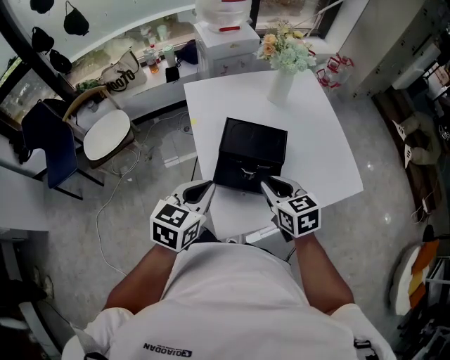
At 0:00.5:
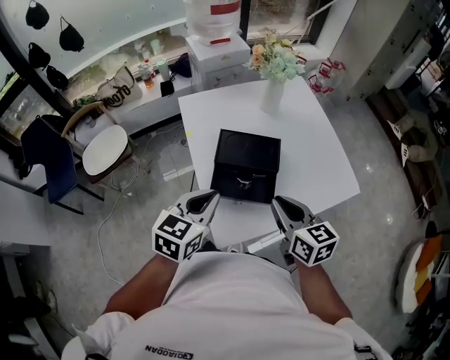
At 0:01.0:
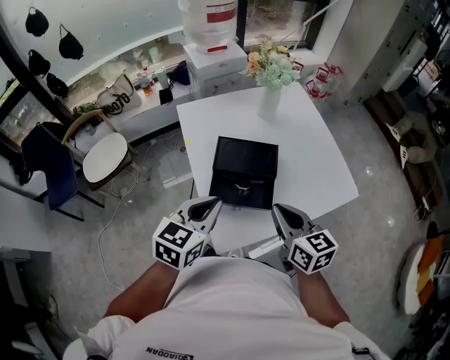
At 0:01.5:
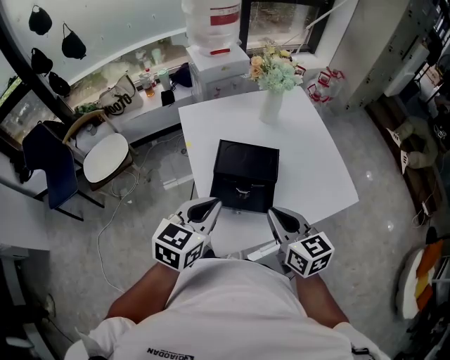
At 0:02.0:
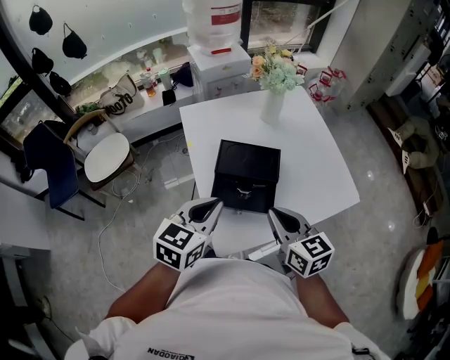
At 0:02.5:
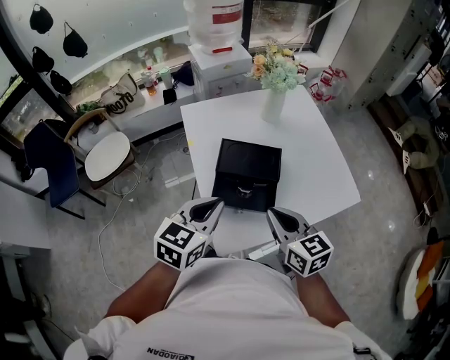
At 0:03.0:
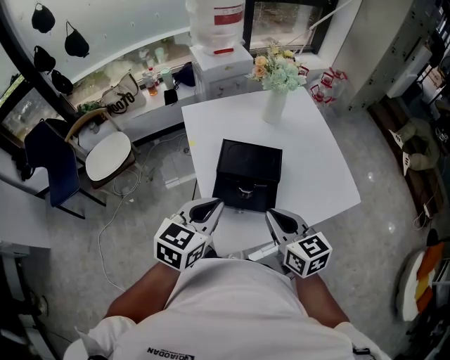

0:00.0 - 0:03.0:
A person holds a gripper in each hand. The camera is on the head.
0:00.0 - 0:01.5: The right gripper travels upward by some 5 cm. The left gripper changes place by roughly 5 cm.
0:01.5 - 0:03.0: There are only small adjustments of the grippers.

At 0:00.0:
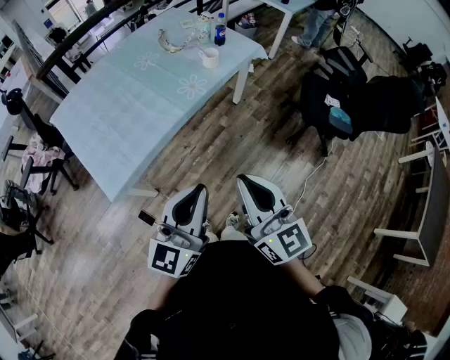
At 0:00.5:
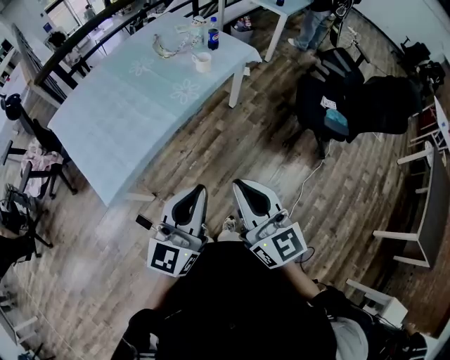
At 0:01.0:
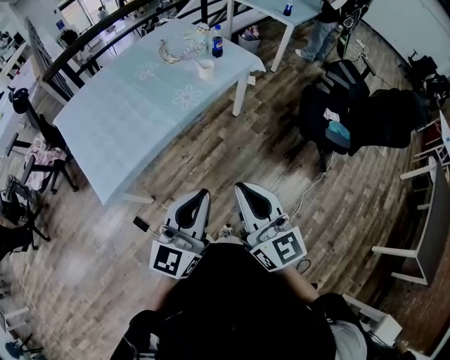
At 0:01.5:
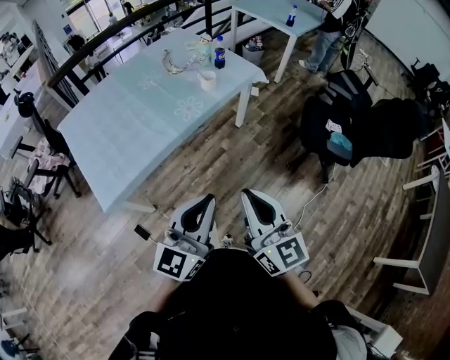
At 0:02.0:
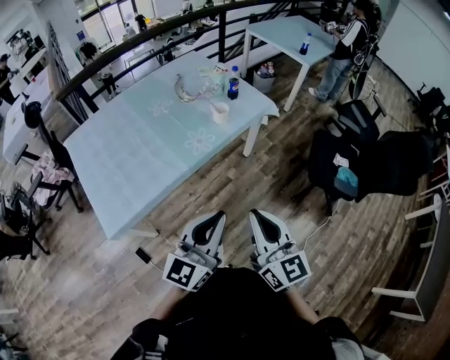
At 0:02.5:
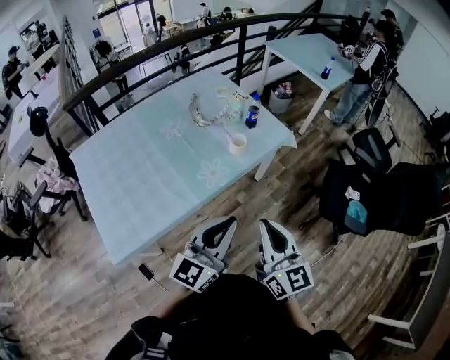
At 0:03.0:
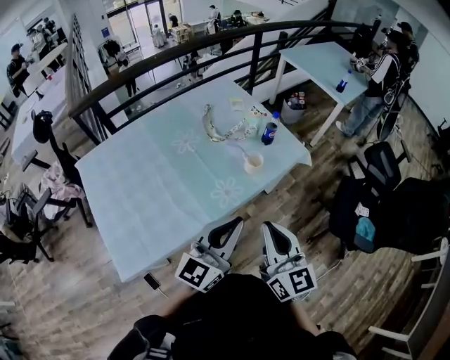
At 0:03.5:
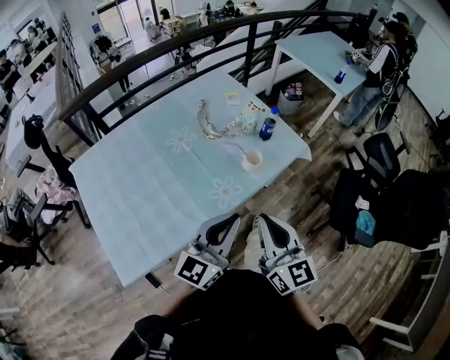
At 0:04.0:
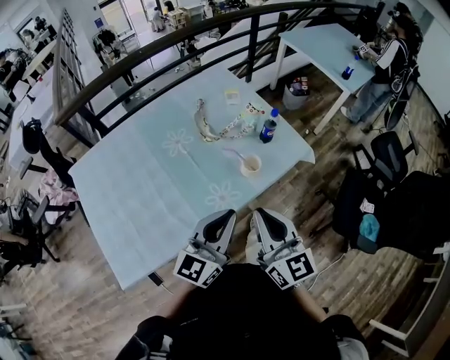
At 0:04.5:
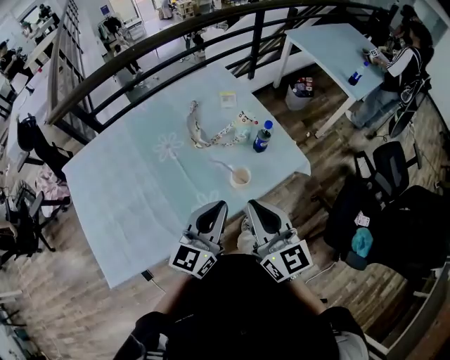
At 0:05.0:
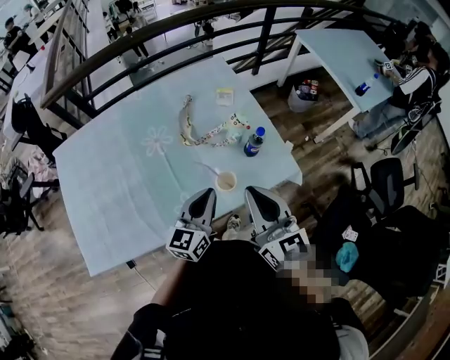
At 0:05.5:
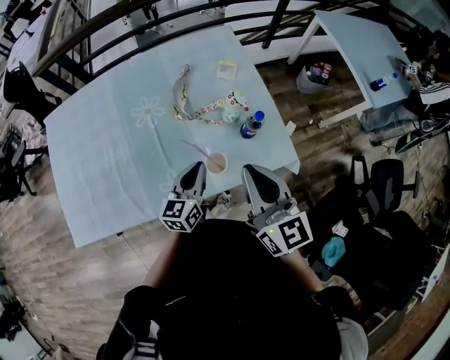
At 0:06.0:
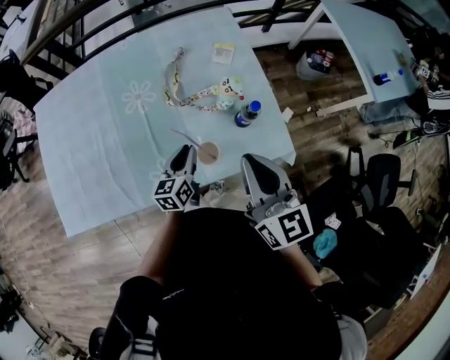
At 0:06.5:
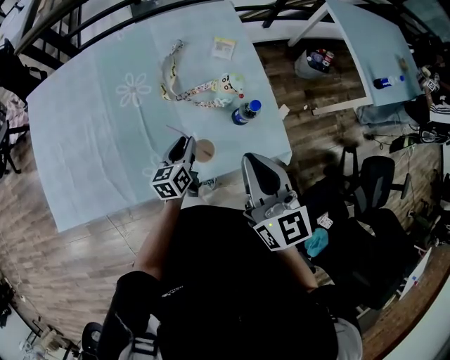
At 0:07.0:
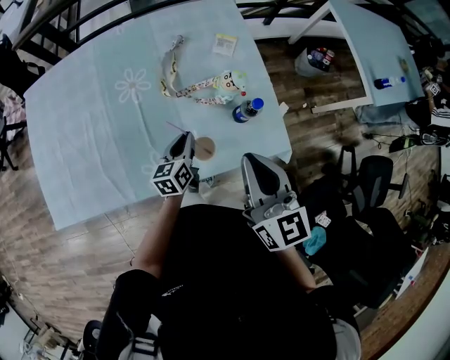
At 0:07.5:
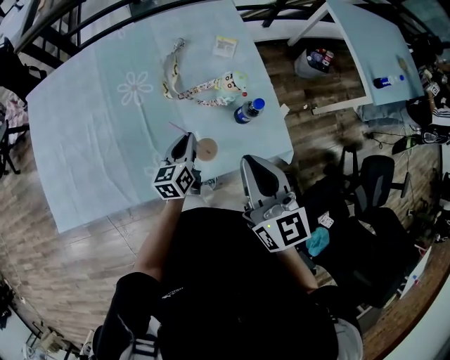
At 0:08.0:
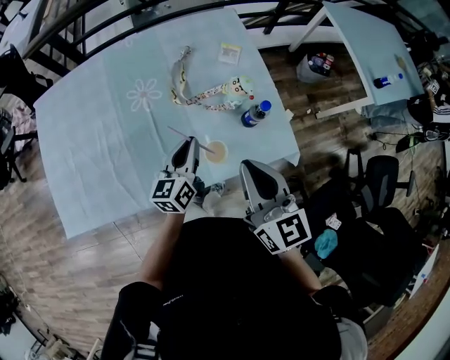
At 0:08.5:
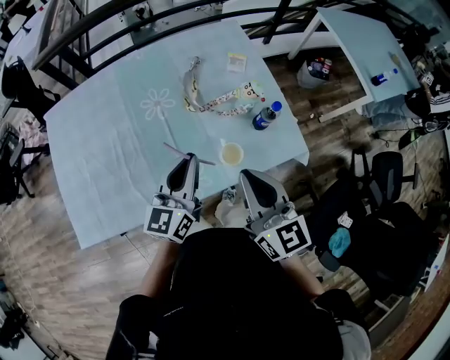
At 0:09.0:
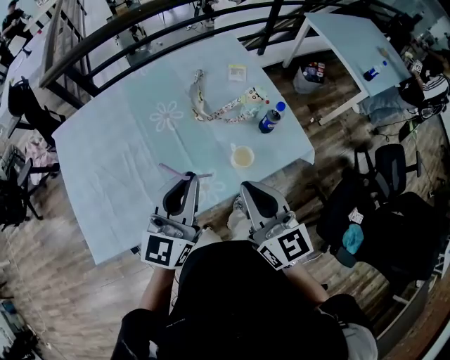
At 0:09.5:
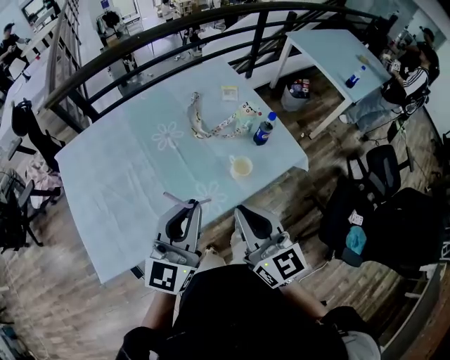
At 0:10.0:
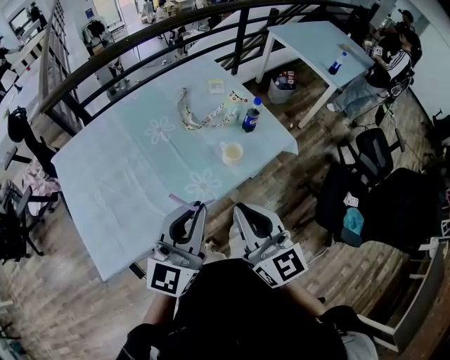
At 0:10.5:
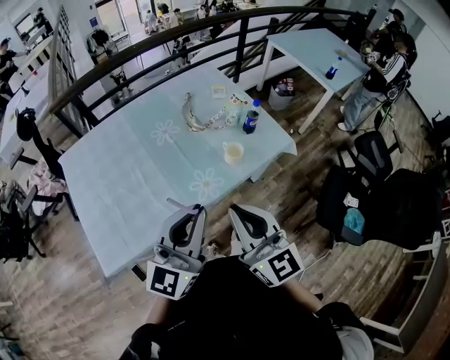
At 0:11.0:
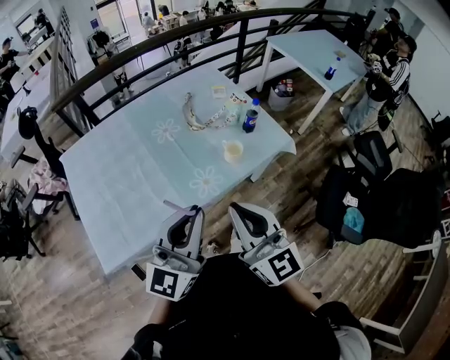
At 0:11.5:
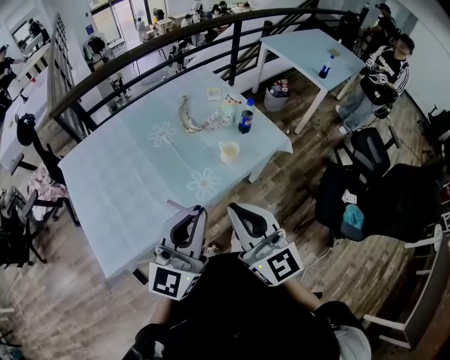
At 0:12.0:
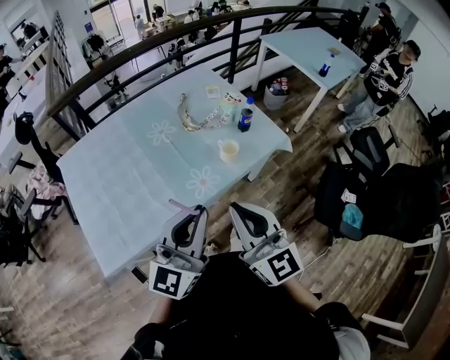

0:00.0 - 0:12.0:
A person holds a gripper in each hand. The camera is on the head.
0:00.0 - 0:02.0: The grippers both shift forward and to the right by some 15 cm.
0:02.0 - 0:04.0: Both grippers travel together forward, approximately 35 cm.
0:04.0 - 0:06.0: The right gripper moves about 25 cm. Meanwhile the left gripper shifts by roughly 35 cm, and rotates approximately 50 degrees.
0:06.0 - 0:08.0: The left gripper shifts about 5 cm upward.
0:08.0 - 0:10.0: The left gripper goes about 35 cm backward and upward, and changes its angle by roughly 40 degrees; the right gripper is displaced backward and to the left by about 25 cm.
0:10.0 - 0:12.0: Both grippers move backward, about 5 cm.

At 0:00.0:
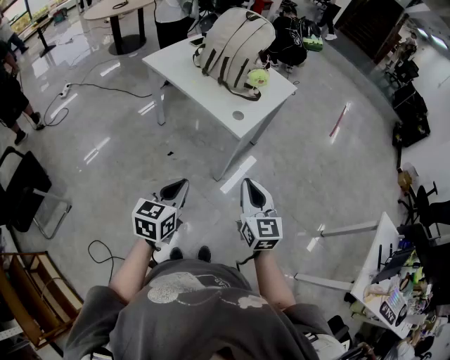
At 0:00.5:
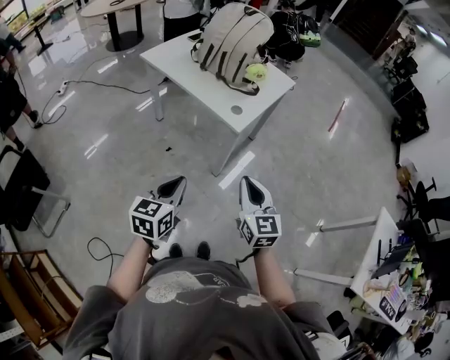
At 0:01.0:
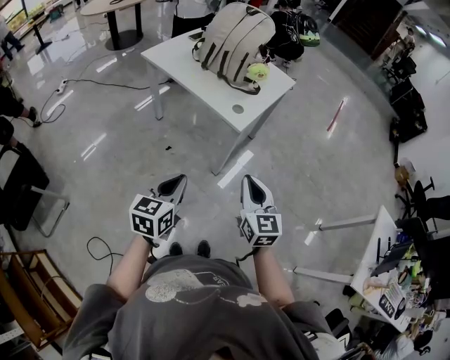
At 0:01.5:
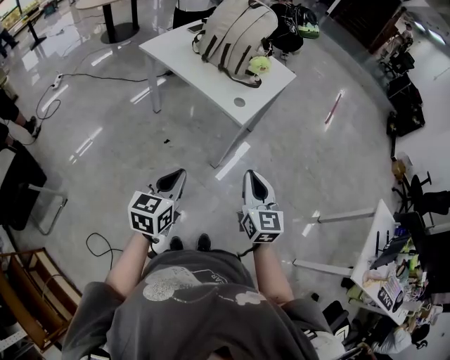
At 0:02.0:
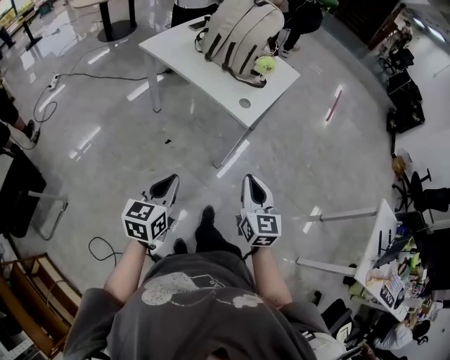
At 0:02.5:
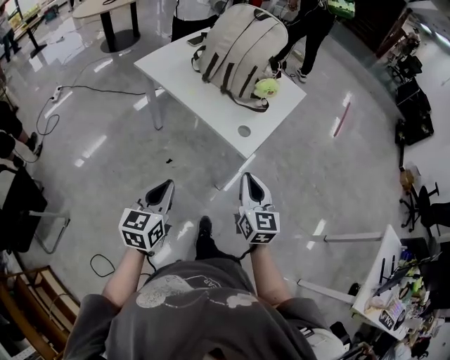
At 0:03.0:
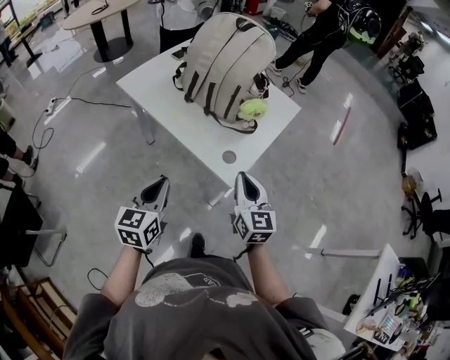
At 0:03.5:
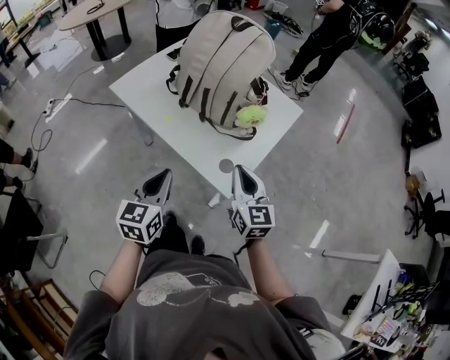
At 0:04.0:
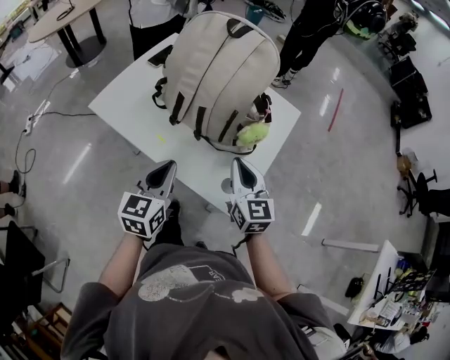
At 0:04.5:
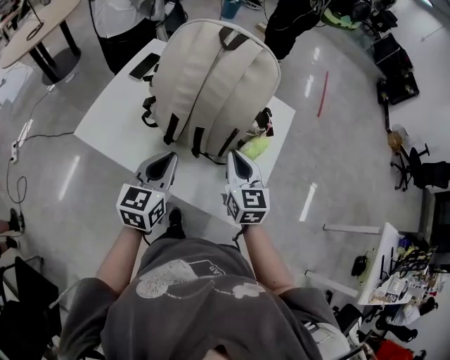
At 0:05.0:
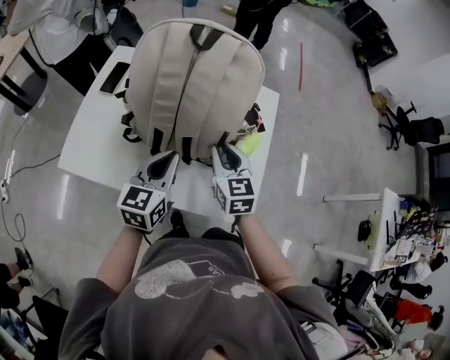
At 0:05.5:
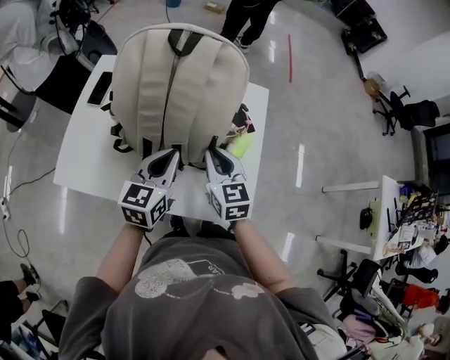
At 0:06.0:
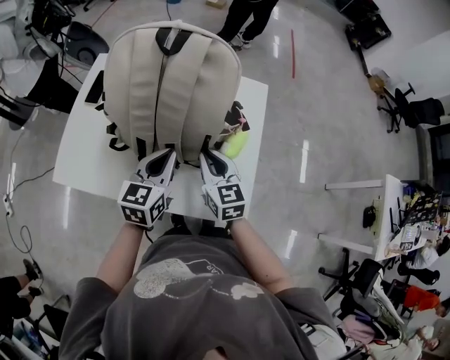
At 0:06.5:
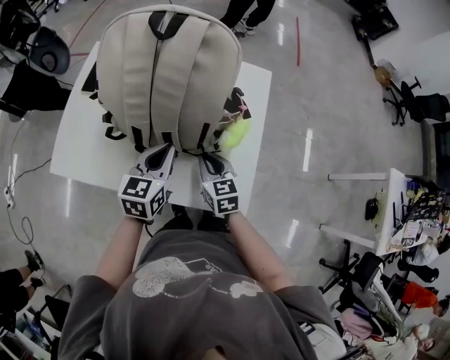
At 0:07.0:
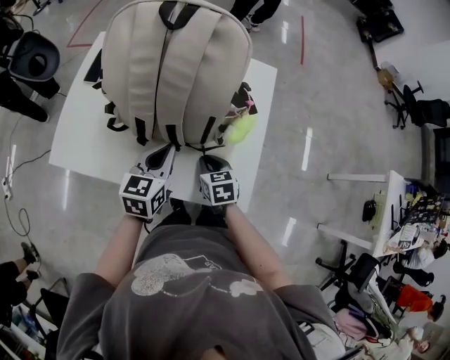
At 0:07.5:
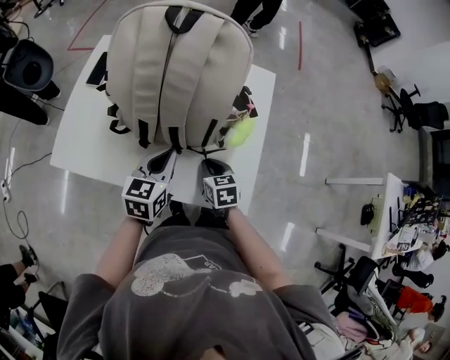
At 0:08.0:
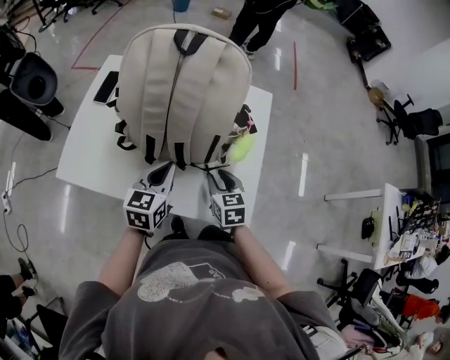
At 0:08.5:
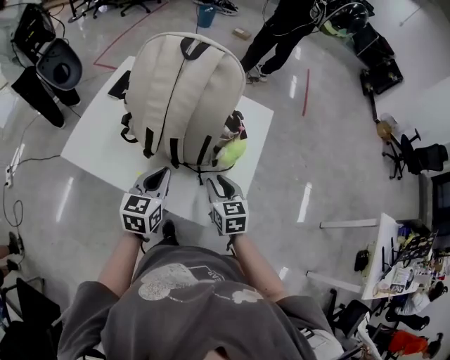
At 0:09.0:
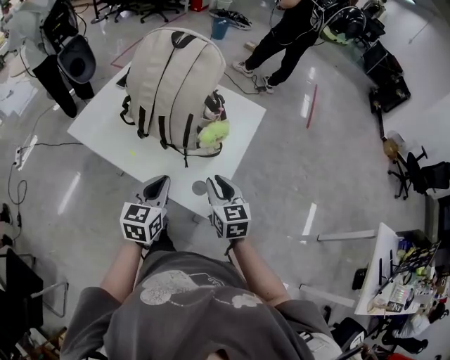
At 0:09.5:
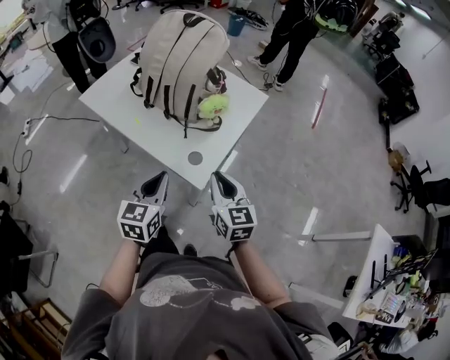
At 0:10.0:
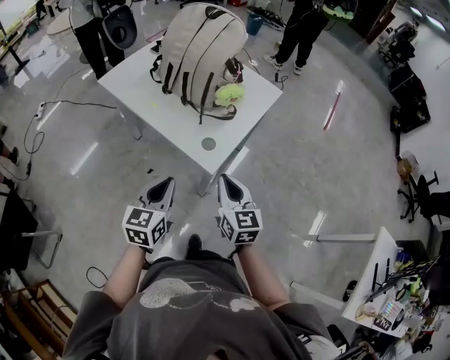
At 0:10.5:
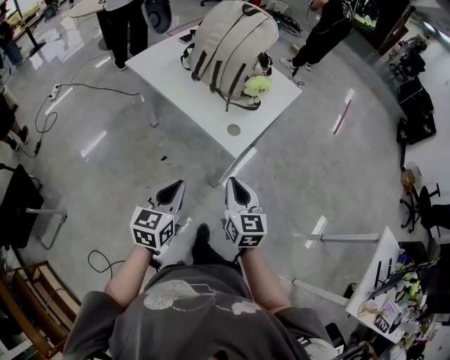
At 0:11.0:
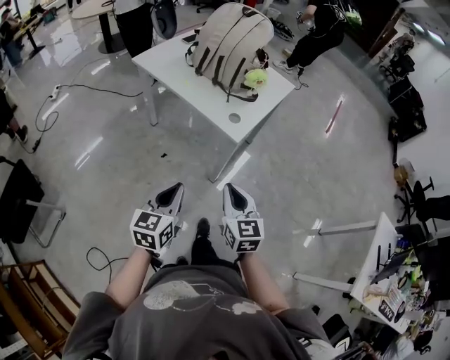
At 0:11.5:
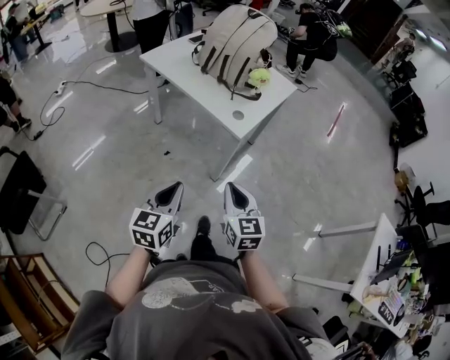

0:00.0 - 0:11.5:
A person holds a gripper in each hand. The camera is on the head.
0:00.0 - 0:02.0: The left gripper shifts about 10 cm to the left; the right gripper changes place by about 5 cm.
0:02.0 - 0:04.0: Both grippers are carried forward, roughly 50 cm.
0:04.0 - 0:06.0: The left gripper is displaced forward by approximately 20 cm, and rotates some 20 degrees. Meanwhile the right gripper is displaced forward, downward and to the left by approximately 15 cm.
0:06.0 - 0:07.5: The left gripper shifts some 5 cm downward. The right gripper shifts roughly 15 cm downward, and rotates some 30 degrees.
0:07.5 - 0:09.5: The right gripper shifts some 30 cm backward, upward and to the right, changes its angle by some 40 degrees, and opens, then closes once more; the left gripper heads backward and to the right, covering about 30 cm, and swivels about 30 degrees.
0:09.5 - 0:11.5: Both grippers move backward, approximately 30 cm.
